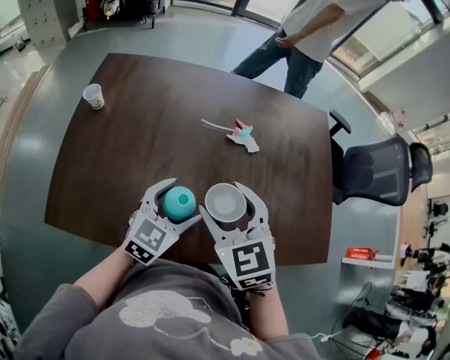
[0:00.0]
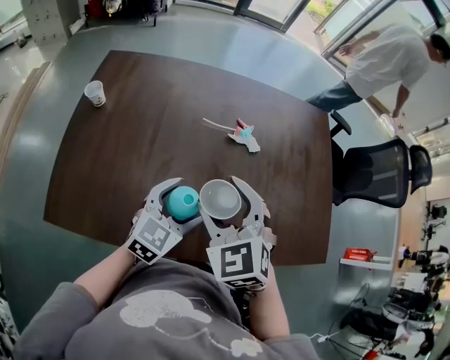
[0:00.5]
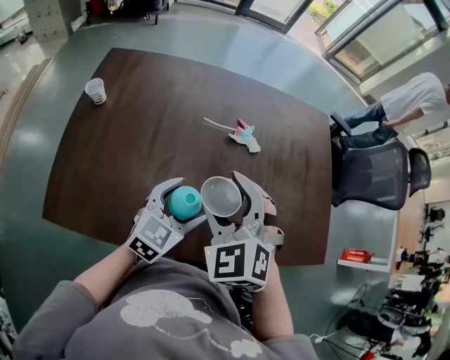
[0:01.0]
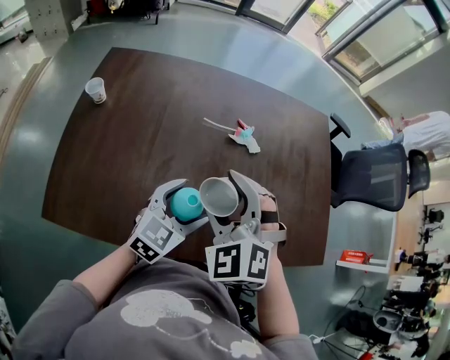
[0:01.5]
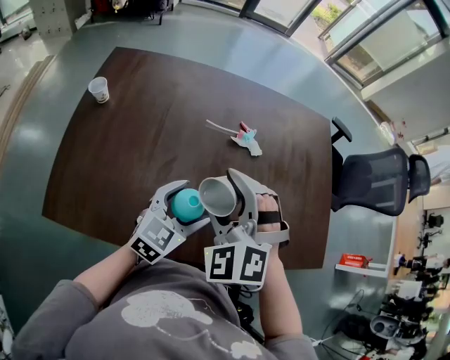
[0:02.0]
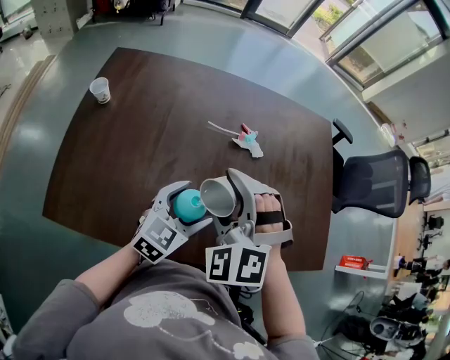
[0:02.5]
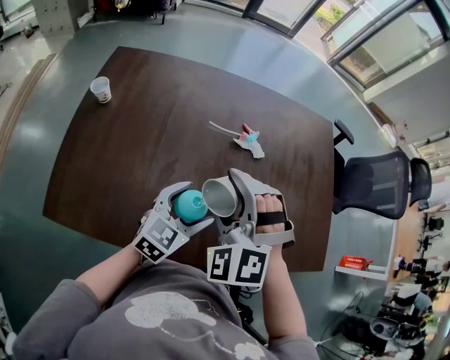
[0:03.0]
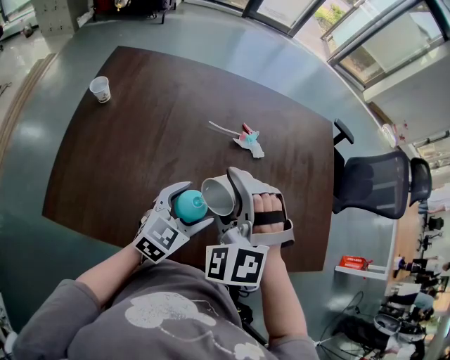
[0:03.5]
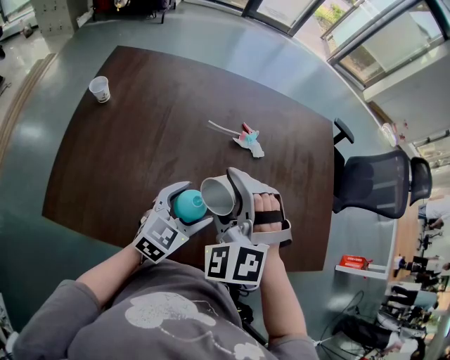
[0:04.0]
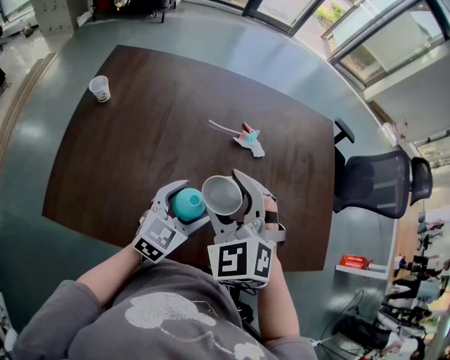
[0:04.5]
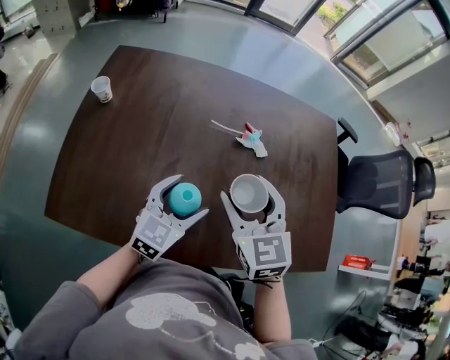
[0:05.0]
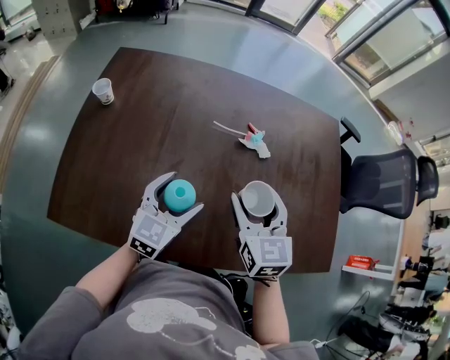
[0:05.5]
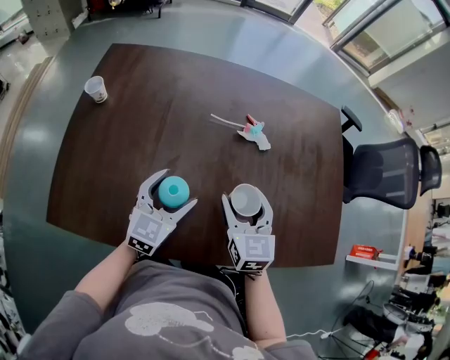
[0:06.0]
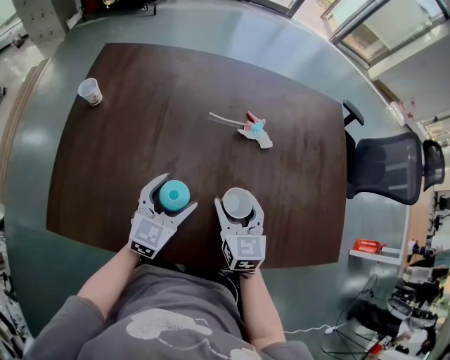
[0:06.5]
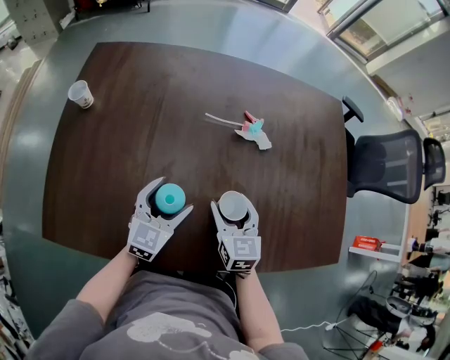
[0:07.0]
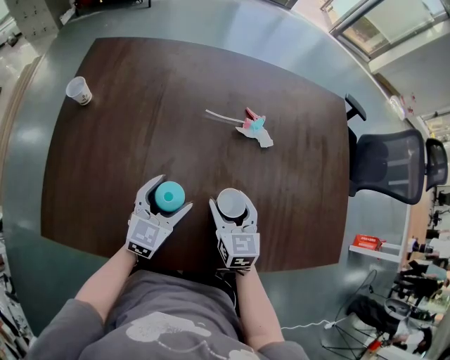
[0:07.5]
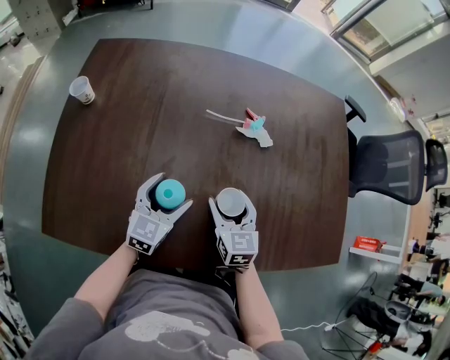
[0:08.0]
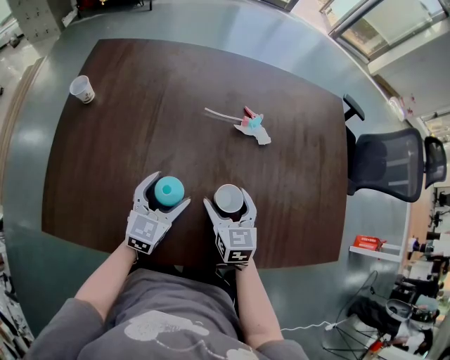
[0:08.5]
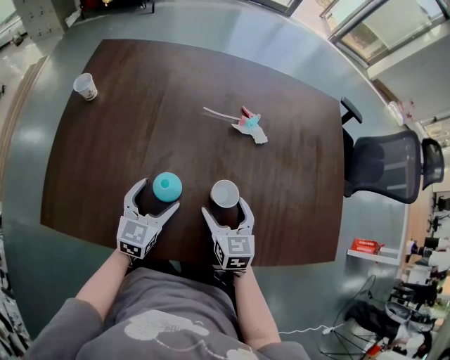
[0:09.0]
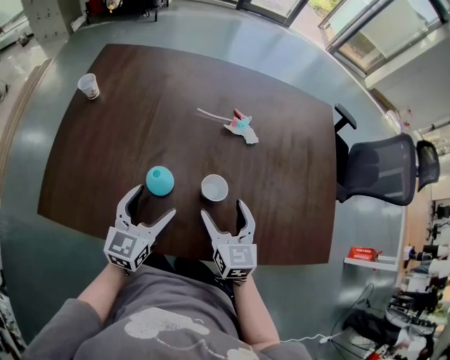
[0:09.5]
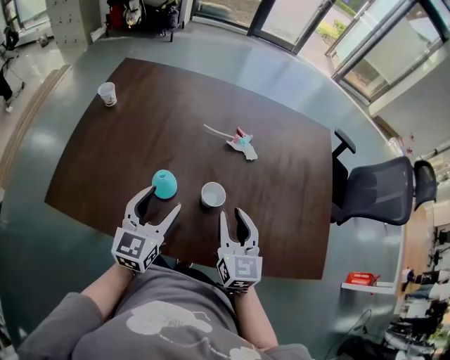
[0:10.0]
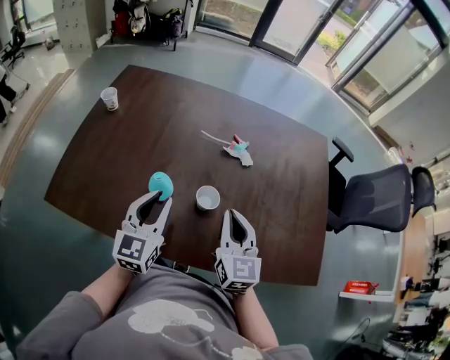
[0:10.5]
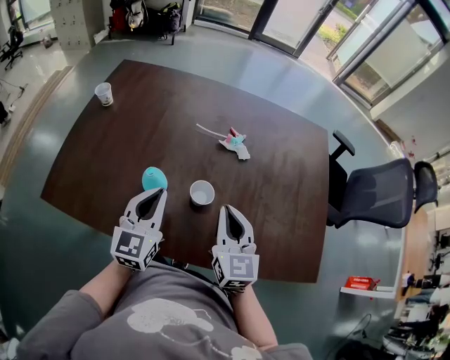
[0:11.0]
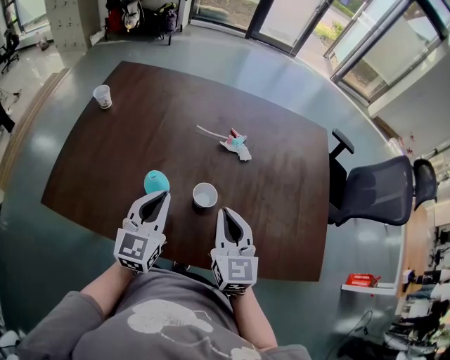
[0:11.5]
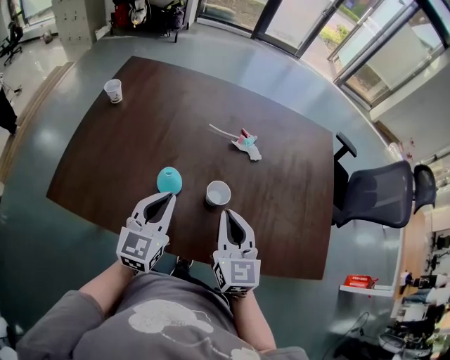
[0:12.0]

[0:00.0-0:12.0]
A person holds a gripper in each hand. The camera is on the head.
0:00.0 to 0:02.0: The right gripper rolls counterclockwise, seen from behind, by about 40 degrees.
0:02.0 to 0:04.0: The grippers stay close to where they were, moving slightly.
0:04.0 to 0:06.0: The left gripper is displaced to the left by roughly 5 cm. Meanwhile the right gripper heads downward and to the right, covering roughly 15 cm, and rotates around the line of its fingers by some 70 degrees, clockwise from behind.
0:06.0 to 0:08.0: Both grippers move downward, some 10 cm.
0:08.0 to 0:10.0: The right gripper heads upward, backward and to the right, covering some 15 cm, and closes. Meanwhile the left gripper travels upward and backward by some 15 cm, and changes its angle by approximately 20 degrees.
0:10.0 to 0:12.0: The left gripper closes up.

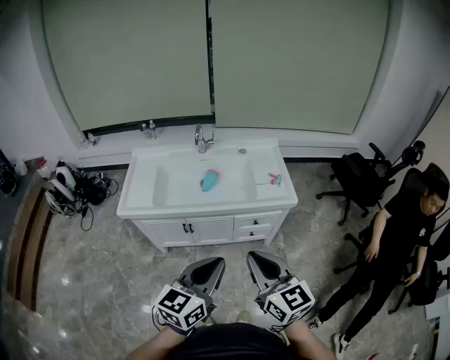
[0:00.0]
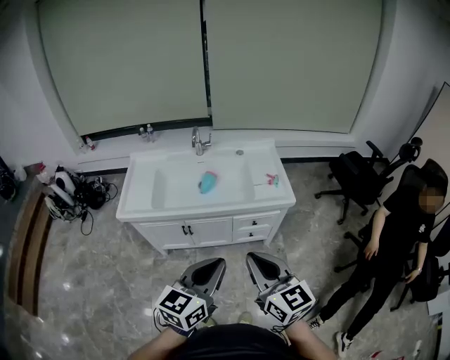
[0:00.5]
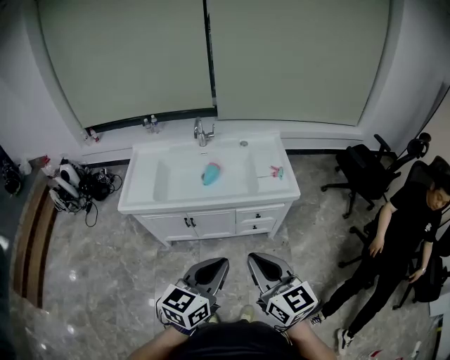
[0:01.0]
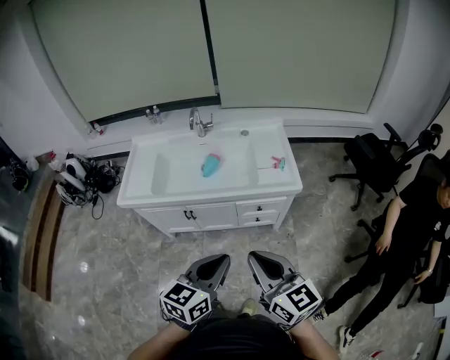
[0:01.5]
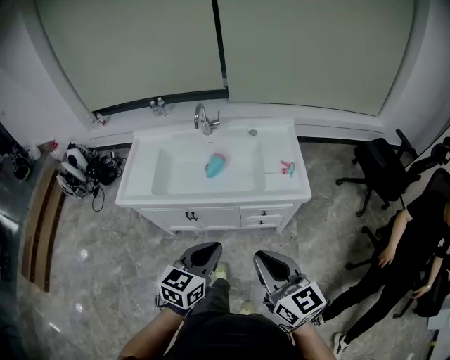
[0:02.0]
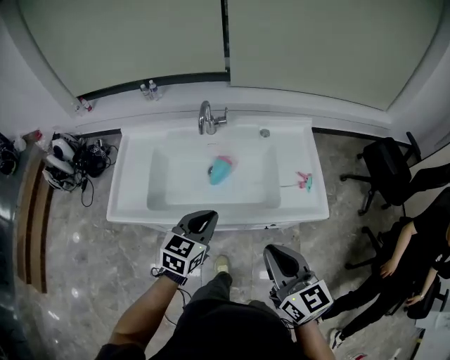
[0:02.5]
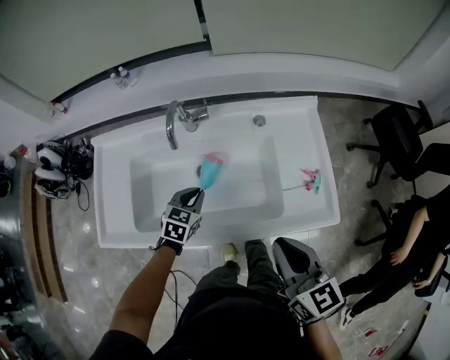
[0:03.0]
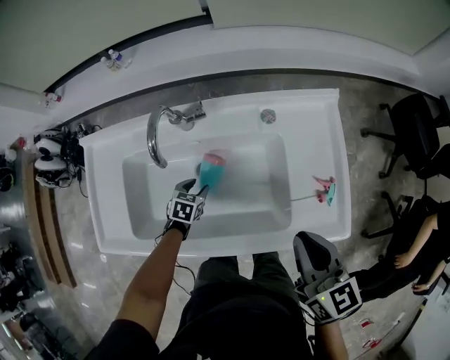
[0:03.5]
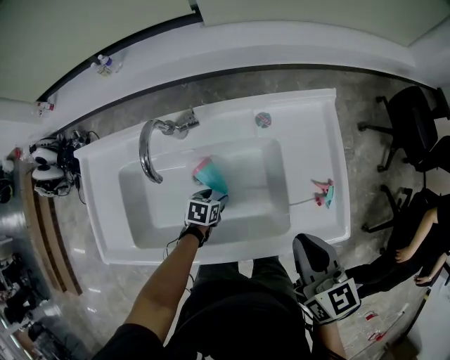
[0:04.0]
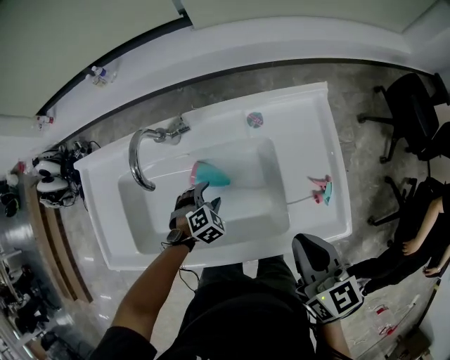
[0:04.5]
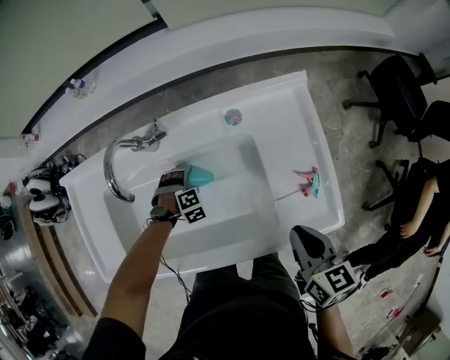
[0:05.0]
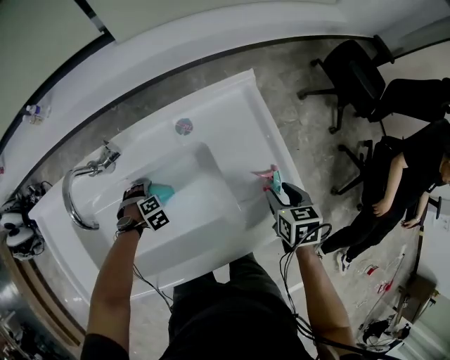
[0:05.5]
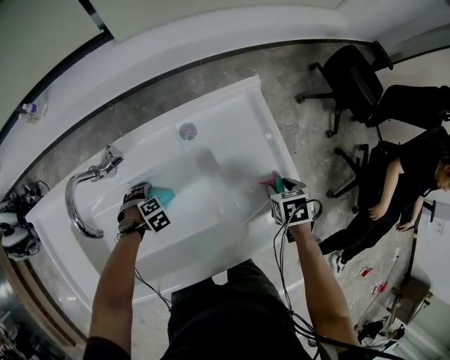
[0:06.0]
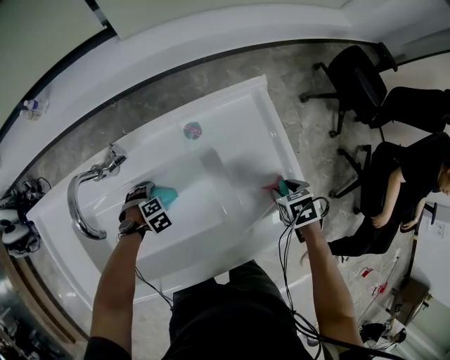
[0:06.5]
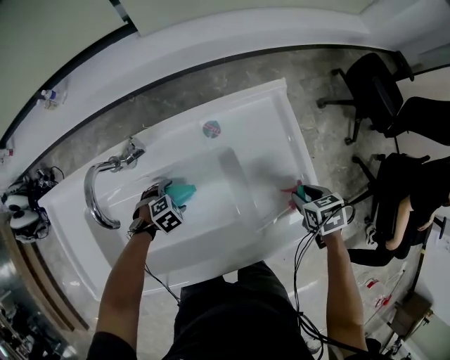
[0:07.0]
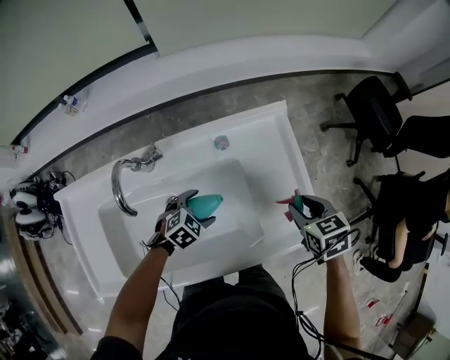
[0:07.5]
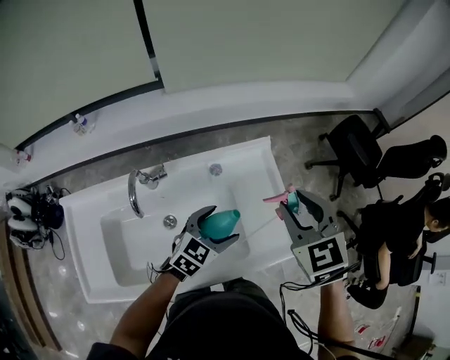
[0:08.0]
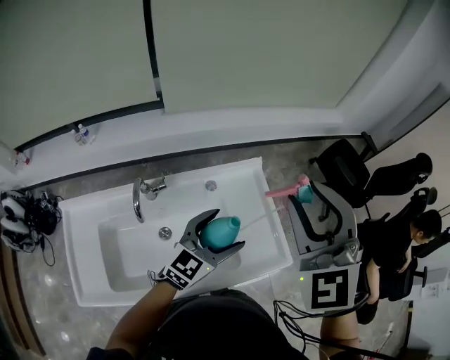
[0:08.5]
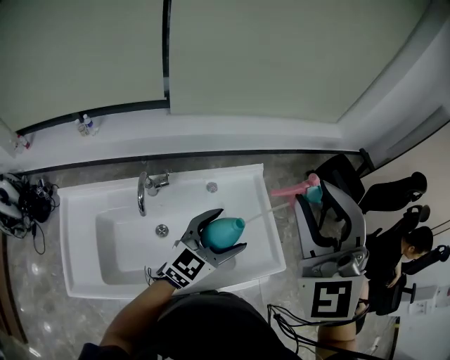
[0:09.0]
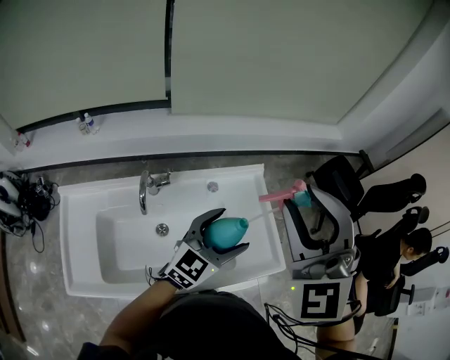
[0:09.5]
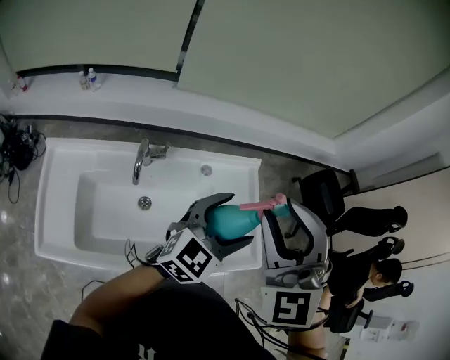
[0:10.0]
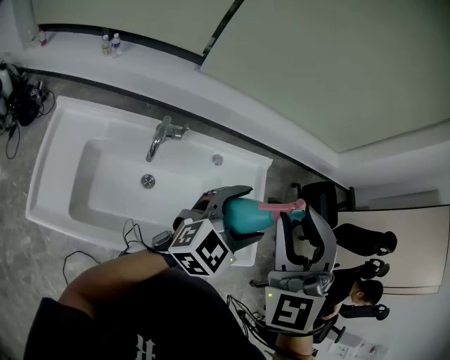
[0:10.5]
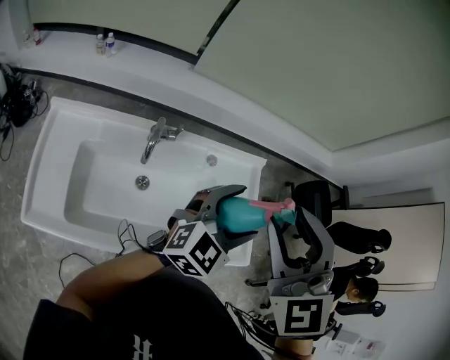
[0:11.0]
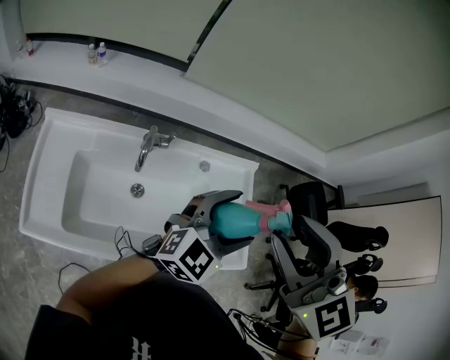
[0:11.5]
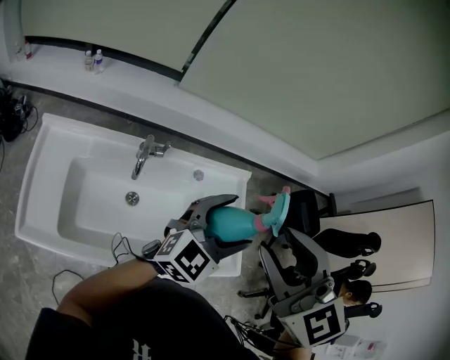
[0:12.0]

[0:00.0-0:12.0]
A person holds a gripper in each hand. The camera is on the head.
0:00.0 to 0:02.0: The left gripper shifts roughly 15 cm forward and downward. Meanwhile the right gripper shifts approximately 10 cm forward and to the right.
0:02.0 to 0:04.0: The two grippers travel together, forward, approximately 50 cm. The left gripper heads downward, covering some 40 cm, points its fingers some 40 degrees further downward, and opens. The right gripper rotates roughly 30 degrees.
0:04.0 to 0:06.0: The right gripper moves downward, about 25 cm, points its fingers approximately 50 degrees further downward, and opens up. Meanwhile the left gripper shifts by about 10 cm, rotates around the line of its fingers by roughly 70 degrees, clockwise from behind, and opens its fingers.
0:06.0 to 0:08.0: Both grippers move upward, some 35 cm. The left gripper tilts its fingers some 60 degrees upward, while the right gripper tilts its fingers about 40 degrees upward.
0:08.0 to 0:10.0: The right gripper heads upward, to the left and backward, covering some 20 cm, and turns by about 40 degrees. The left gripper travels upward by about 20 cm, and rotates roughly 30 degrees.
0:10.0 to 0:12.0: The right gripper moves roughly 5 cm, and changes its angle by roughly 30 degrees.

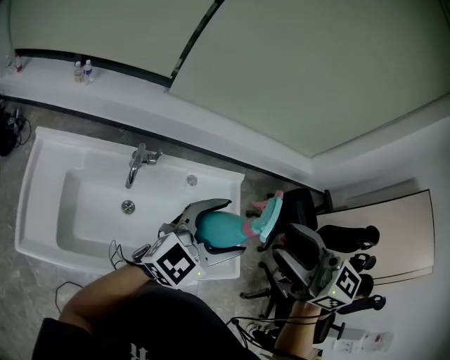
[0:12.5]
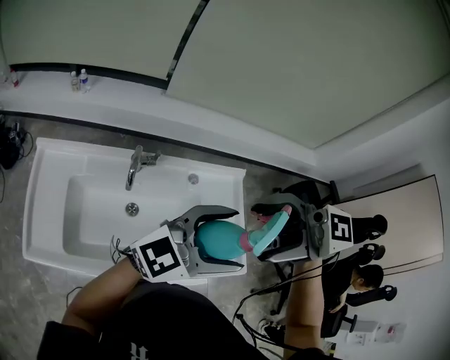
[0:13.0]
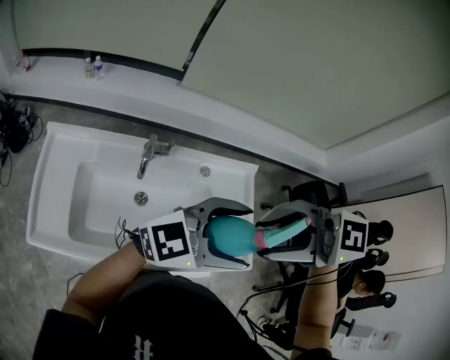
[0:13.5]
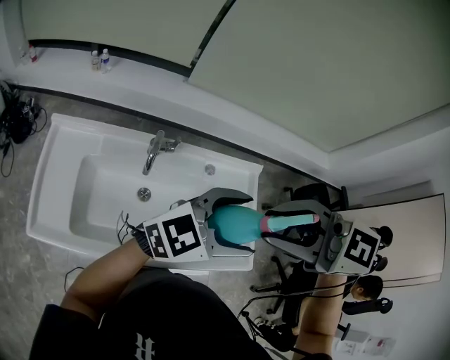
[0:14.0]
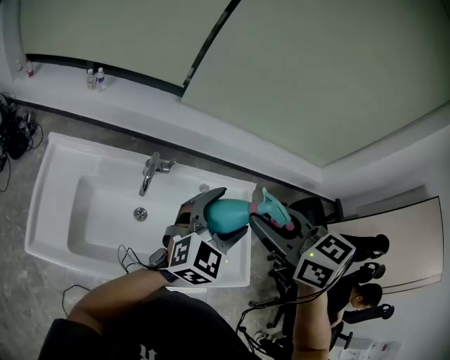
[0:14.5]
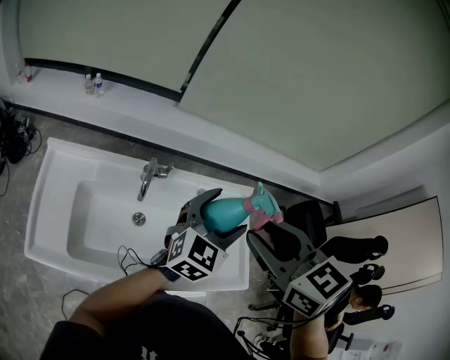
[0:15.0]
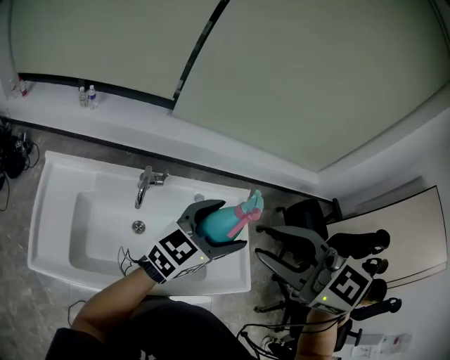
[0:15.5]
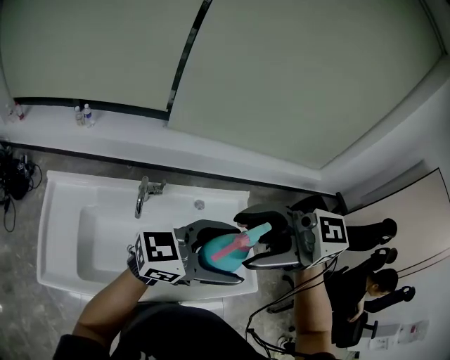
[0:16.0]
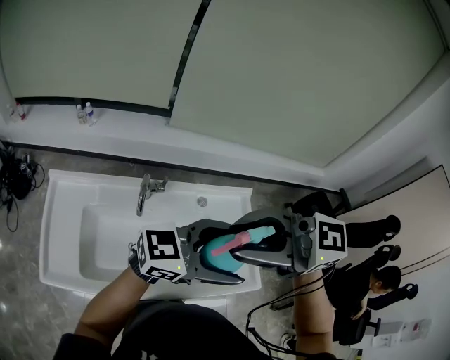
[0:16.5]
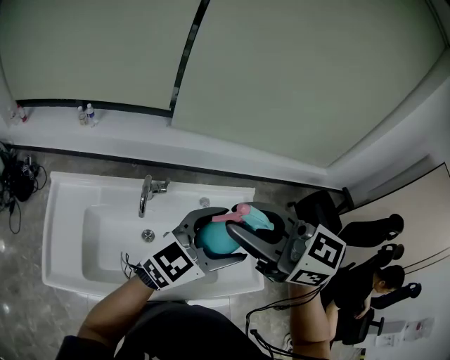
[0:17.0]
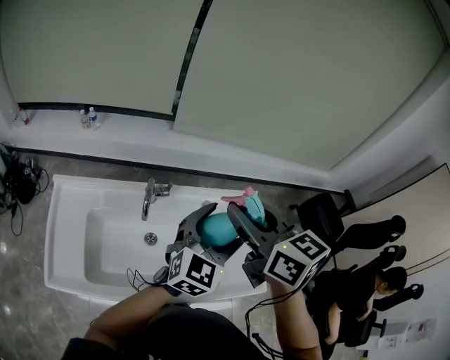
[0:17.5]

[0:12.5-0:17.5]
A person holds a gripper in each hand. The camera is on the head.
0:12.5 to 0:15.0: The left gripper moves some 10 cm, and changes its angle by approximately 20 degrees; the right gripper shifts by some 10 cm, rotates approximately 30 degrees, and opens, then closes once more.
0:15.0 to 0:17.5: The left gripper goes upward and returns, some 10 cm each way. Meanwhile the right gripper goes upward and returns, some 10 cm each way, rotates approximately 30 degrees, and opens and closes again.
